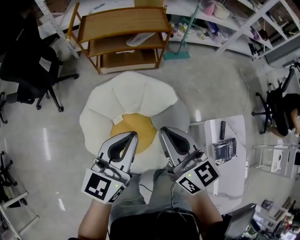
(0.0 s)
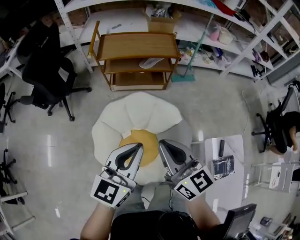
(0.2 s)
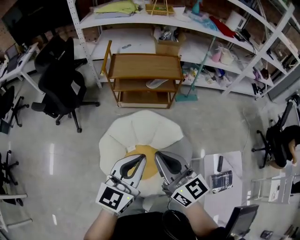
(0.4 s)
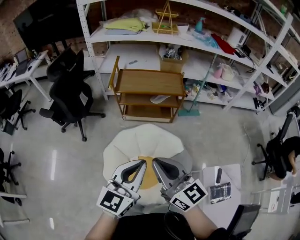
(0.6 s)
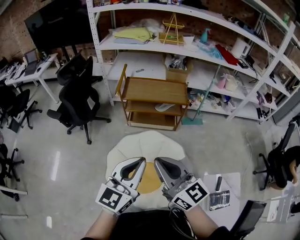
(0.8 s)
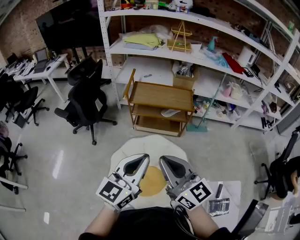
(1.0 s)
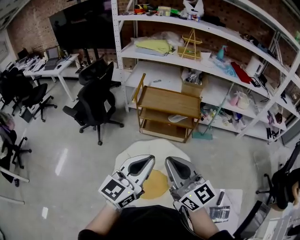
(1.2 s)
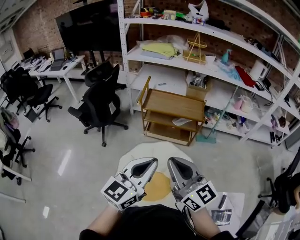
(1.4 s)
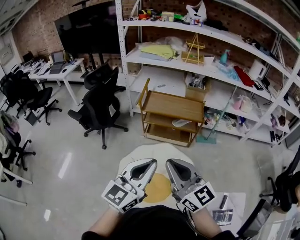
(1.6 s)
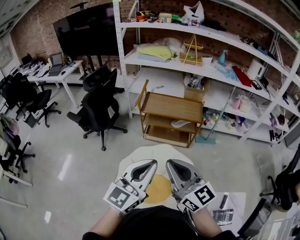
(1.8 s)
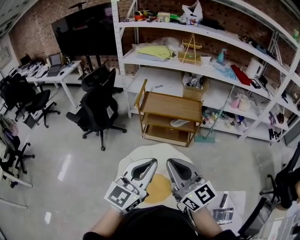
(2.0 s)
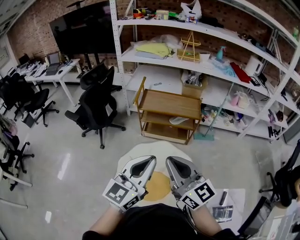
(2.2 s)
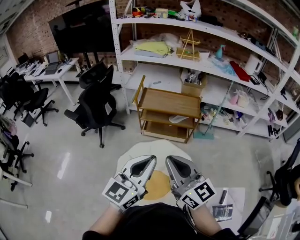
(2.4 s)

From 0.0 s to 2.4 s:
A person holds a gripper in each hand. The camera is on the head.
From 0.0 s to 1.2 s: The two grippers go some 25 cm upward. The right gripper changes its angle by approximately 30 degrees.
From 1.2 s to 2.4 s: The grippers make only small movements.

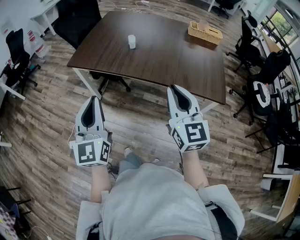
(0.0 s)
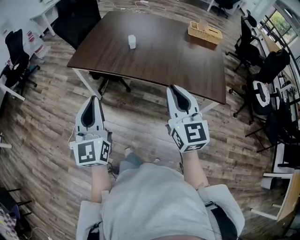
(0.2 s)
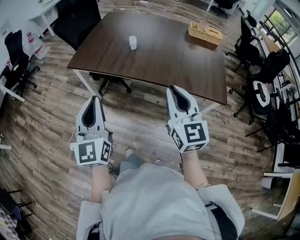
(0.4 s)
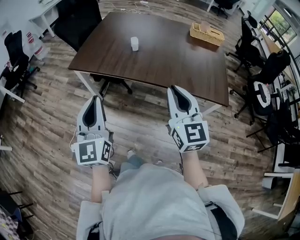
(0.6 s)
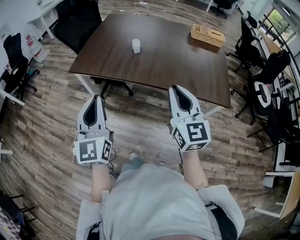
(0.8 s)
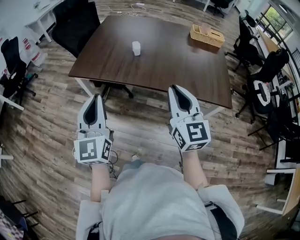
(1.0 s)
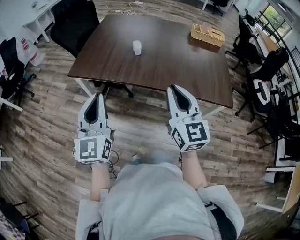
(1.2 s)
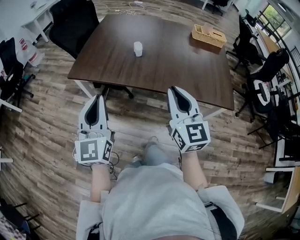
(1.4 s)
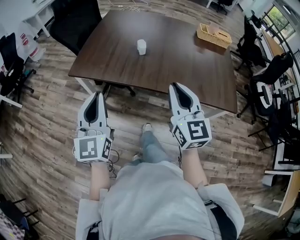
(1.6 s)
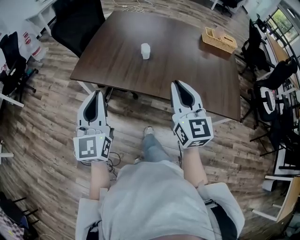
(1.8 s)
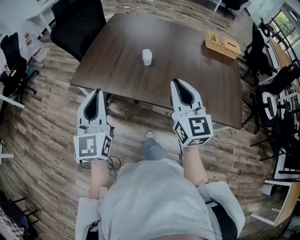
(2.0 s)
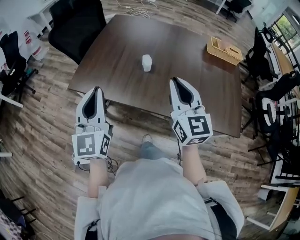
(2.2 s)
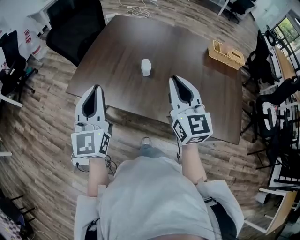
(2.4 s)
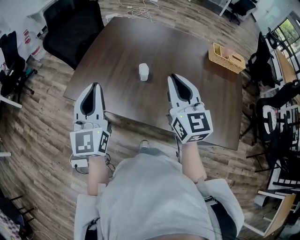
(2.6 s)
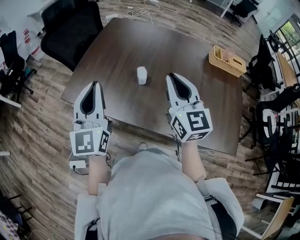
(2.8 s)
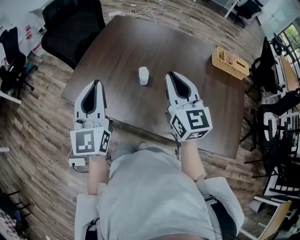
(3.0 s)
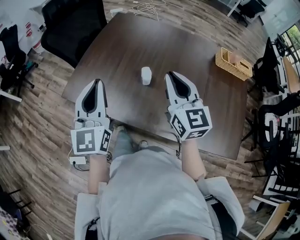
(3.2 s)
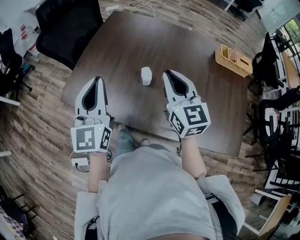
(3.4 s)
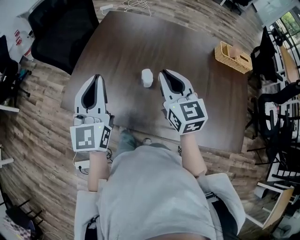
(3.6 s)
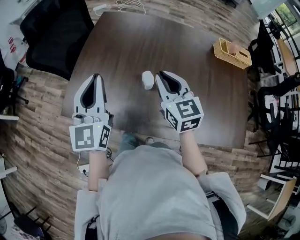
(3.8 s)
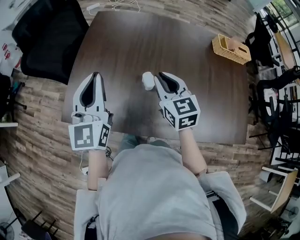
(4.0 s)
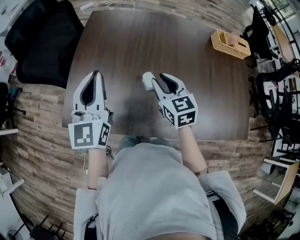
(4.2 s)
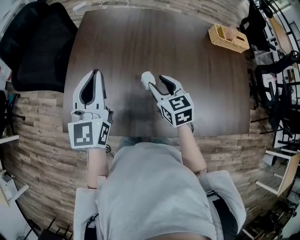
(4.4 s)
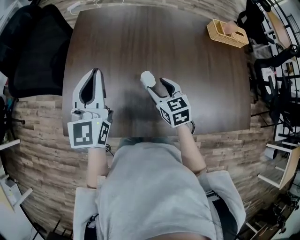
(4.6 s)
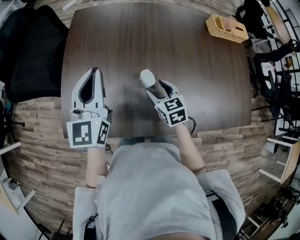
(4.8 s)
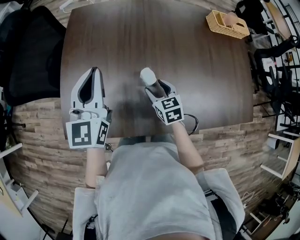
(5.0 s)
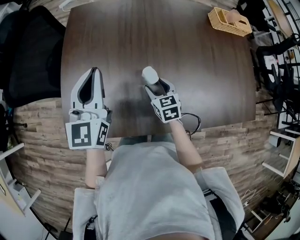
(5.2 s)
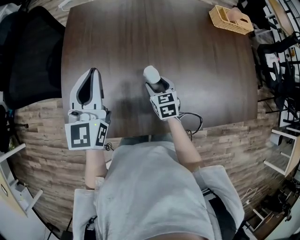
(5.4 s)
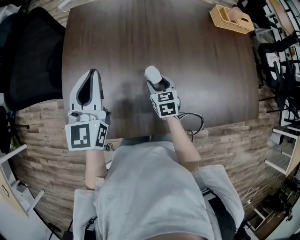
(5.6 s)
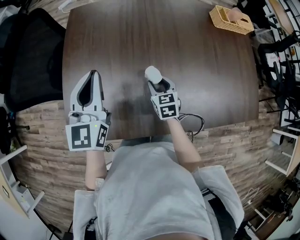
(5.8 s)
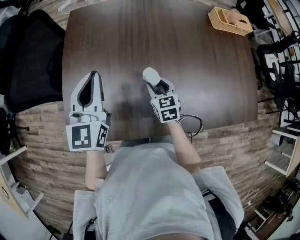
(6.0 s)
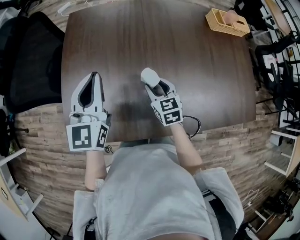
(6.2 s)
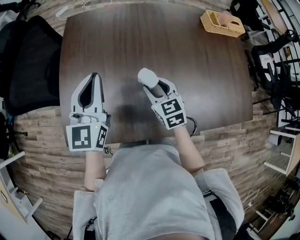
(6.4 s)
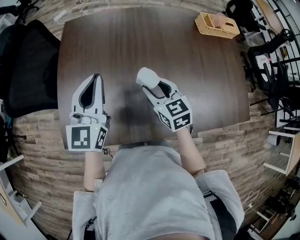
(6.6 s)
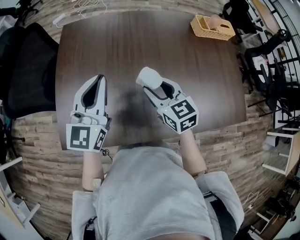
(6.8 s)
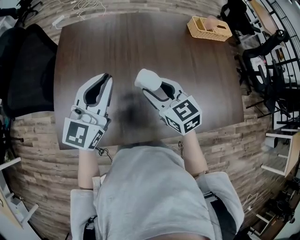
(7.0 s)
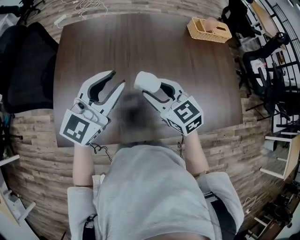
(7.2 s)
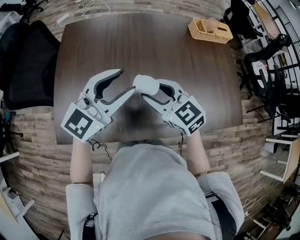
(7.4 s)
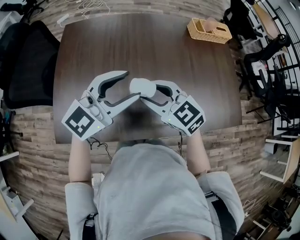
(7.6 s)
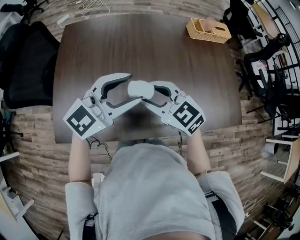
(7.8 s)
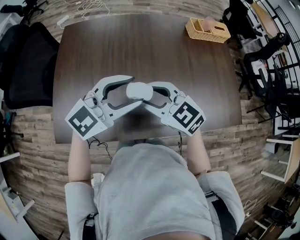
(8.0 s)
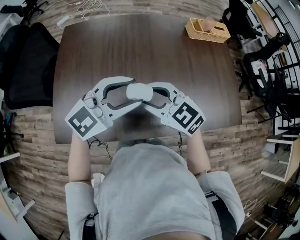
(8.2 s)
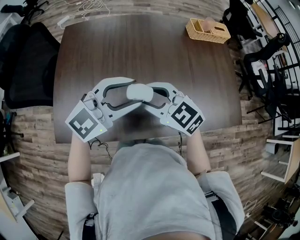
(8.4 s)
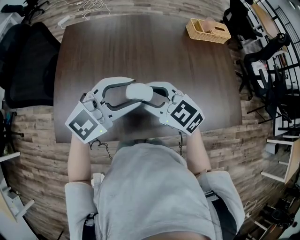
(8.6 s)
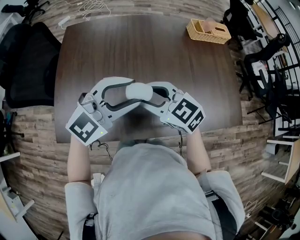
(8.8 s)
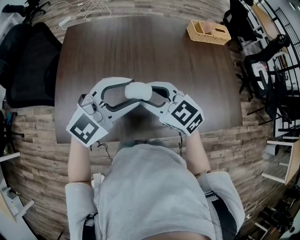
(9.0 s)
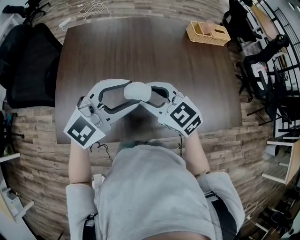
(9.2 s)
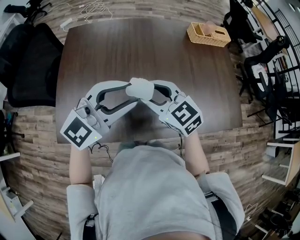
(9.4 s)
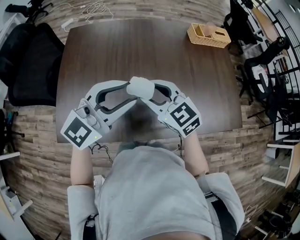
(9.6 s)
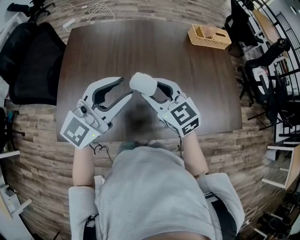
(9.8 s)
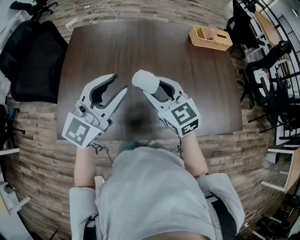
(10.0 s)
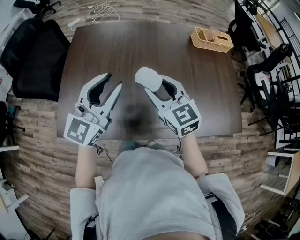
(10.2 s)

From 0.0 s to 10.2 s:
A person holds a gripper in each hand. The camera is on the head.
From 0.0 s to 1.4 s: Both grippers travel together forward and to the left, some 10 cm.
From 1.4 s to 3.0 s: The grippers both shift forward by some 30 cm.
From 3.0 s to 4.4 s: The left gripper goes approximately 20 cm forward. Meanwhile the right gripper shifts about 20 cm downward and forward, rotates some 30 degrees, and opens up.
From 4.4 s to 5.8 s: The left gripper shifts by roughly 5 cm, while the right gripper moves downward, roughly 15 cm.
From 5.8 s to 7.2 s: The left gripper shifts about 15 cm to the right, changes its angle by roughly 30 degrees, and opens its fingers, while the right gripper shifts some 20 cm upward, and changes its angle by some 30 degrees.
From 7.2 s to 8.8 s: The left gripper is displaced to the right and backward by roughly 10 cm, swivels about 30 degrees, and opens.
From 8.8 s to 10.2 s: The right gripper changes place by approximately 5 cm, and rotates approximately 20 degrees. Meanwhile the left gripper is displaced to the left by roughly 5 cm, and changes its angle by some 40 degrees.

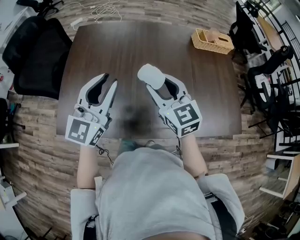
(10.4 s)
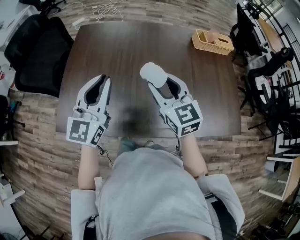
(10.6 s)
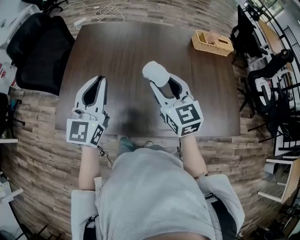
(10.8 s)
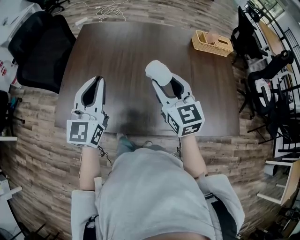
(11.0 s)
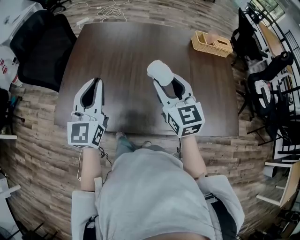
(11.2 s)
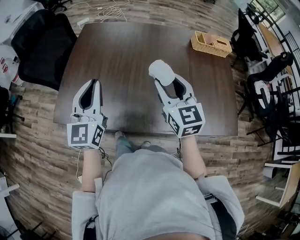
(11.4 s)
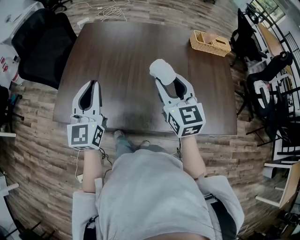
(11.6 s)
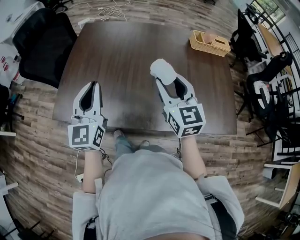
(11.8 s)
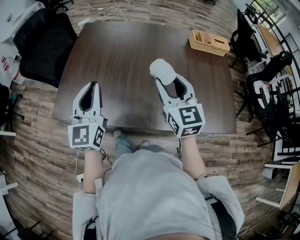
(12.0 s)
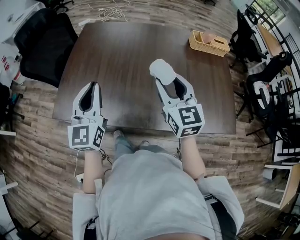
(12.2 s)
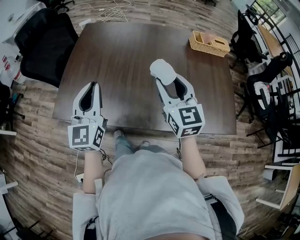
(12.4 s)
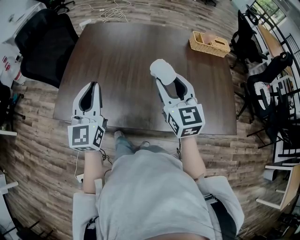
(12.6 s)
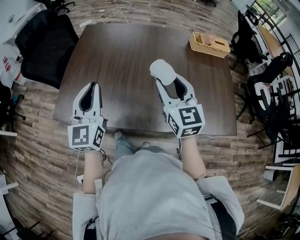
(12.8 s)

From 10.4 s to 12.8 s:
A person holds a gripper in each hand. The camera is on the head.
From 10.4 s to 11.6 s: The left gripper moves backward, approximately 5 cm, and turns by some 20 degrees. Meanwhile the right gripper shifts about 10 cm to the right and backward.
From 11.6 s to 12.8 s: The grippers stay close to where they were, moving slightly.

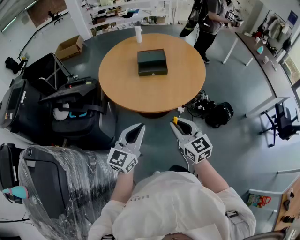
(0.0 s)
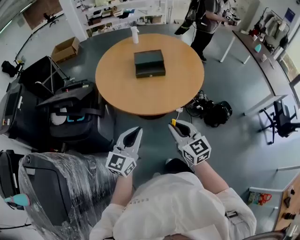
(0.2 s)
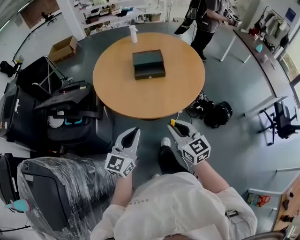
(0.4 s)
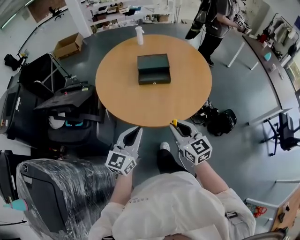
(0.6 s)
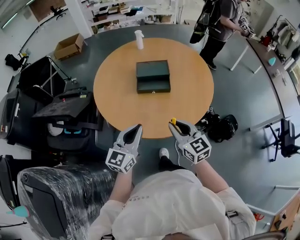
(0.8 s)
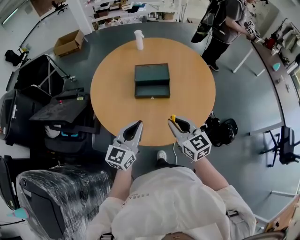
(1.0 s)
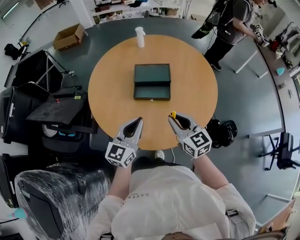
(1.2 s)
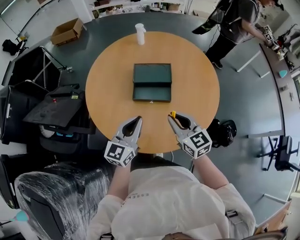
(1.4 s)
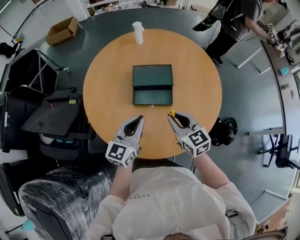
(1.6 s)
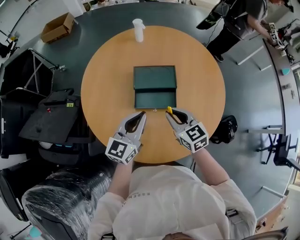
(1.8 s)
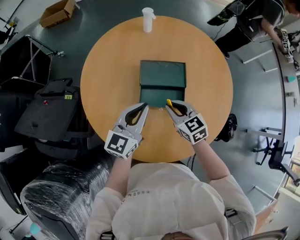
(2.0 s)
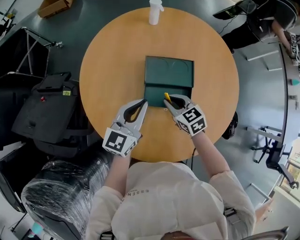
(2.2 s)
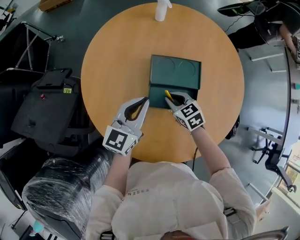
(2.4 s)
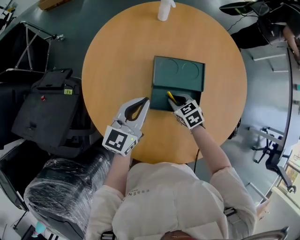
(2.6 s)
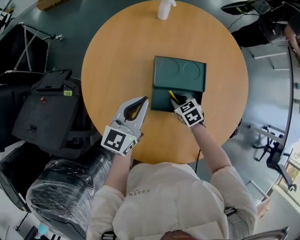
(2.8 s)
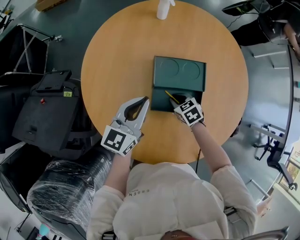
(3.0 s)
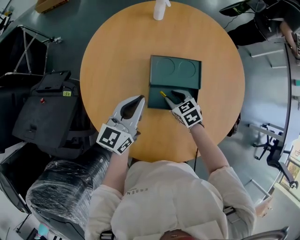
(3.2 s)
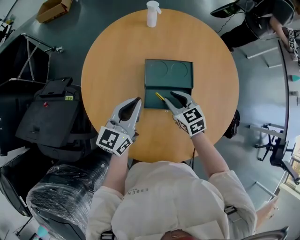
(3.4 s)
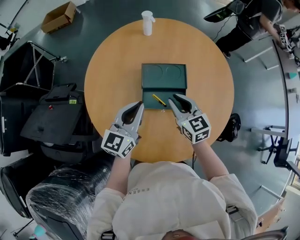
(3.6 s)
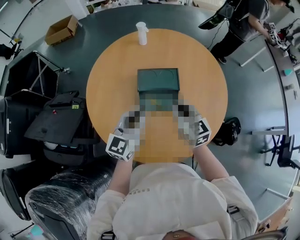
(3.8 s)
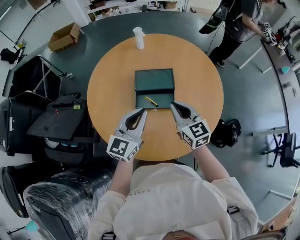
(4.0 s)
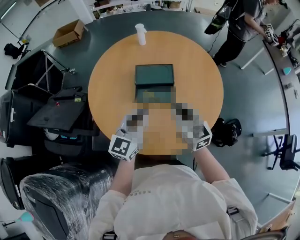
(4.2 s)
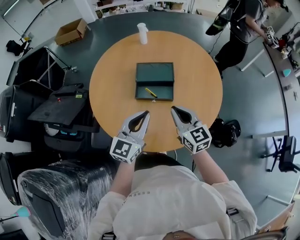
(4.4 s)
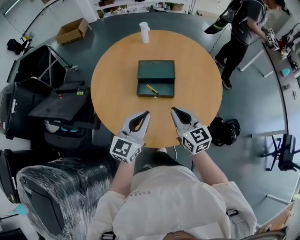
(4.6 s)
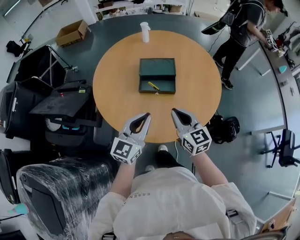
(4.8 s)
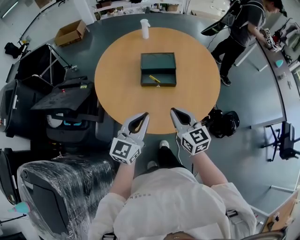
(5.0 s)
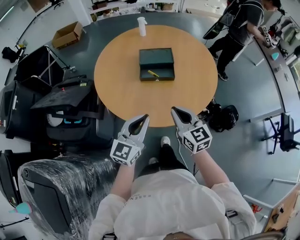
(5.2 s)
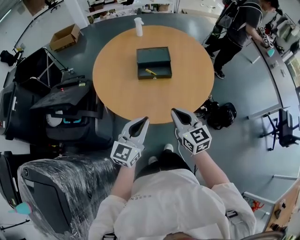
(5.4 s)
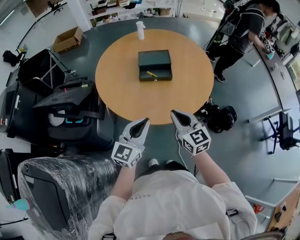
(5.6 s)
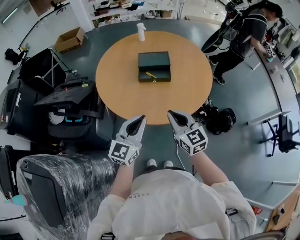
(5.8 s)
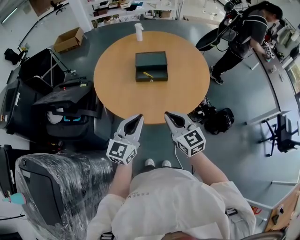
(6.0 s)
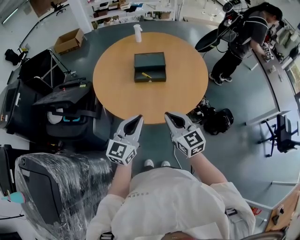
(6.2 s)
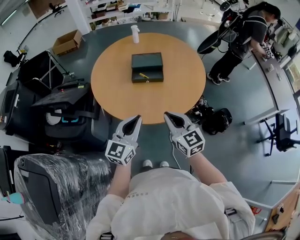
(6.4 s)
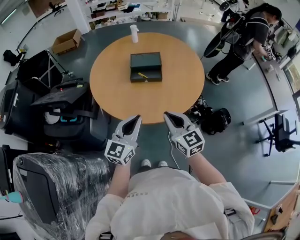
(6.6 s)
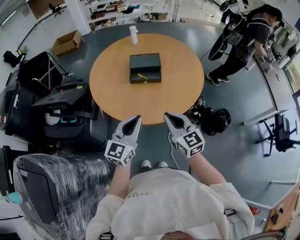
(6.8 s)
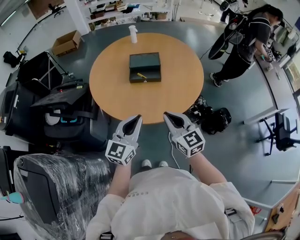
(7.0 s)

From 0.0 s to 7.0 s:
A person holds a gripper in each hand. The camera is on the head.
From 0.0 s to 1.4 s: Both grippers travel together forward, some 35 cm.
From 1.4 s to 2.8 s: The left gripper moves forward, roughly 20 cm; the right gripper shifts roughly 30 cm downward and forward, and tips its fingers downward by approximately 40 degrees.
From 2.8 s to 4.2 s: The left gripper heads backward, upward and to the right, covering roughly 20 cm. The right gripper goes roughly 30 cm upward and backward, and angles its fingers upward, by approximately 50 degrees.
From 4.2 s to 5.6 s: The grippers both shift backward by some 25 cm.
From 5.6 s to 7.0 s: The right gripper shifts by about 5 cm.

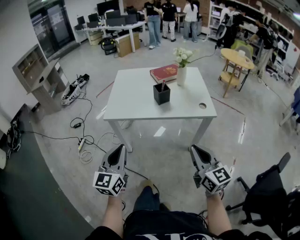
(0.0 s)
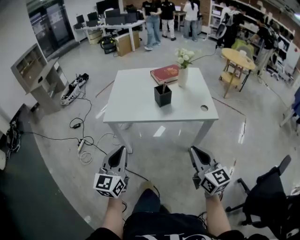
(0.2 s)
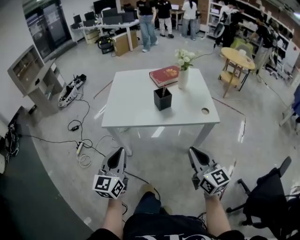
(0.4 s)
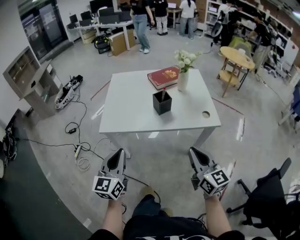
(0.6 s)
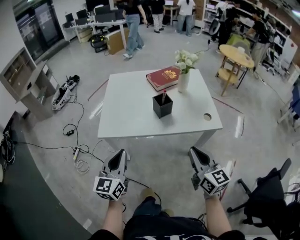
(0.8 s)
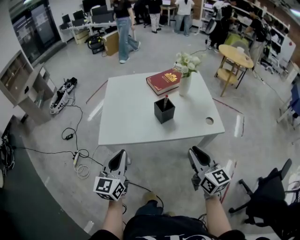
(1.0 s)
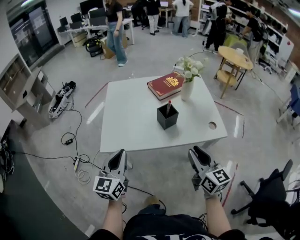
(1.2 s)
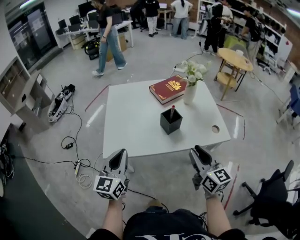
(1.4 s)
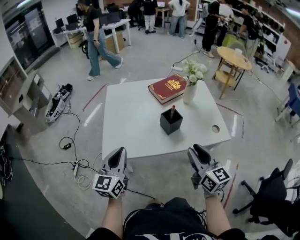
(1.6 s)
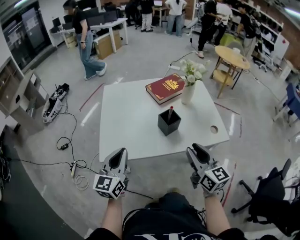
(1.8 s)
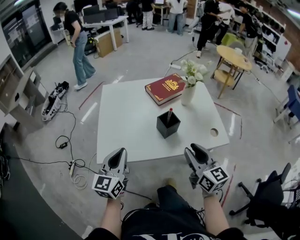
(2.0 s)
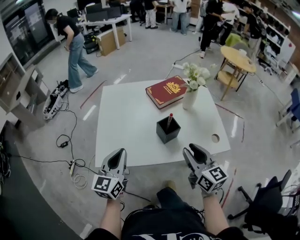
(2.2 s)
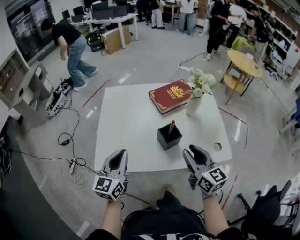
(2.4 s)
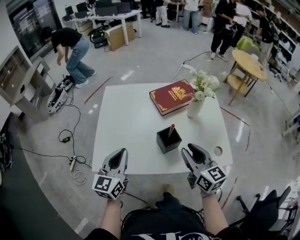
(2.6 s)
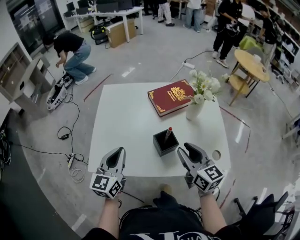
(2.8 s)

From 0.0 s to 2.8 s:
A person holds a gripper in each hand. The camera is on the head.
From 0.0 s to 1.4 s: Both grippers move forward, approximately 25 cm. The right gripper opens.
From 1.4 s to 2.8 s: The two grippers go about 15 cm forward.
